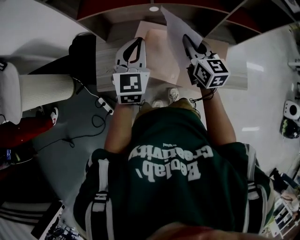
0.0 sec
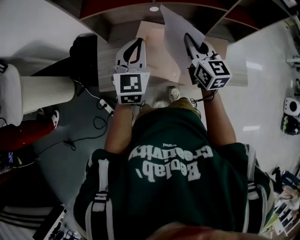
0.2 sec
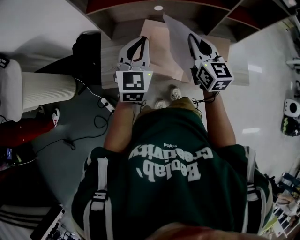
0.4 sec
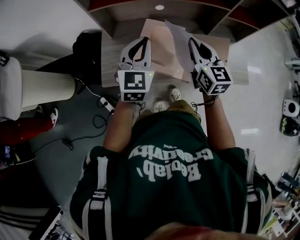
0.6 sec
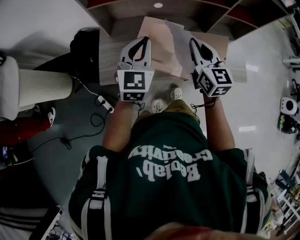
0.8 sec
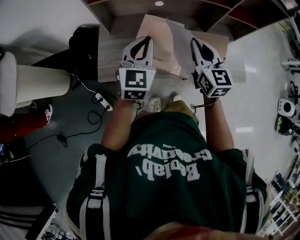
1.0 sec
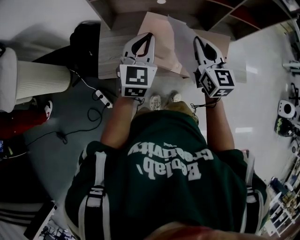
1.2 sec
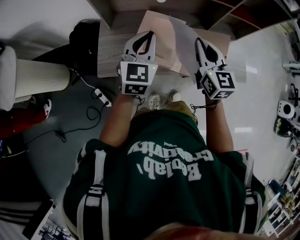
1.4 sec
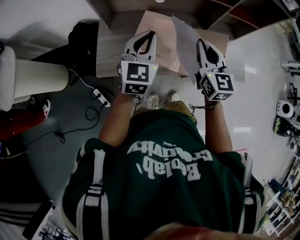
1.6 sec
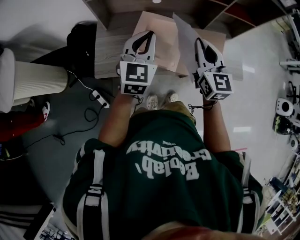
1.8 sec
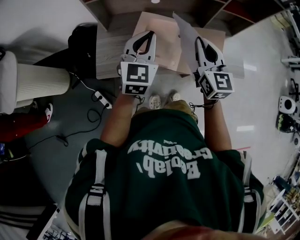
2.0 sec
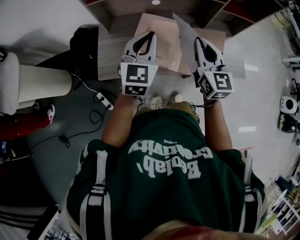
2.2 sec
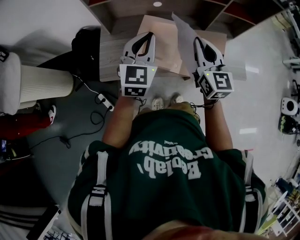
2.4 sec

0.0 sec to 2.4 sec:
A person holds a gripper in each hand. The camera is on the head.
0.0 sec to 1.2 sec: Both grippers move backward, roughly 5 cm.
1.2 sec to 2.4 sec: The grippers stay close to where they were, moving slightly.

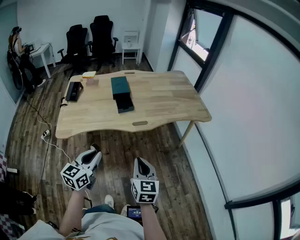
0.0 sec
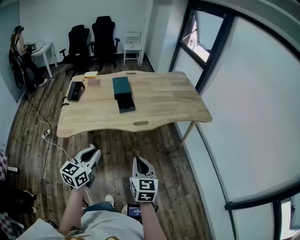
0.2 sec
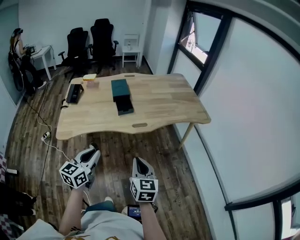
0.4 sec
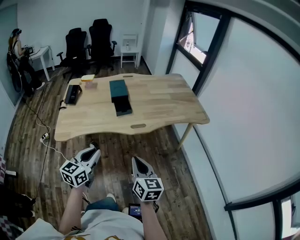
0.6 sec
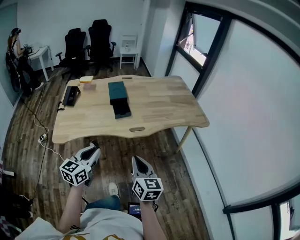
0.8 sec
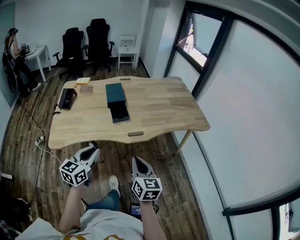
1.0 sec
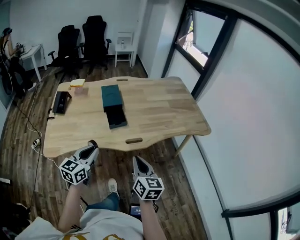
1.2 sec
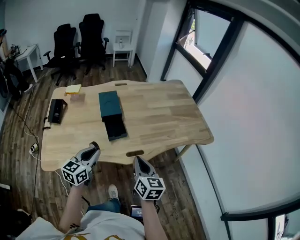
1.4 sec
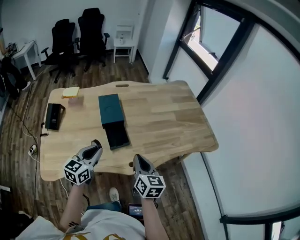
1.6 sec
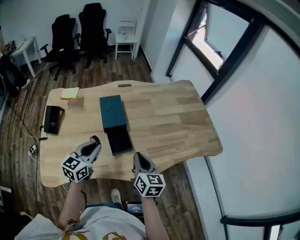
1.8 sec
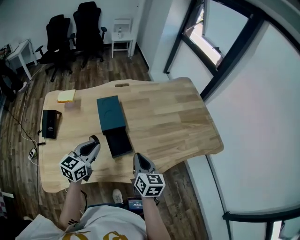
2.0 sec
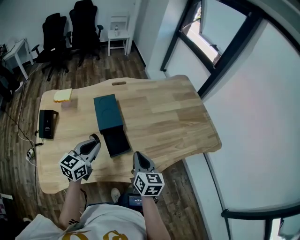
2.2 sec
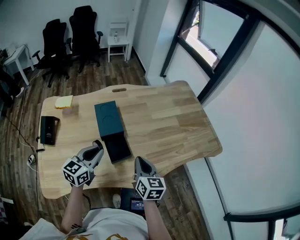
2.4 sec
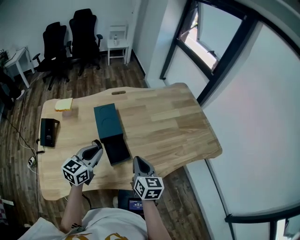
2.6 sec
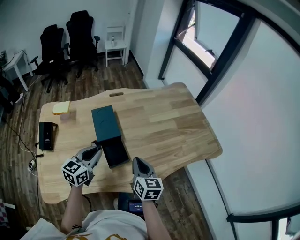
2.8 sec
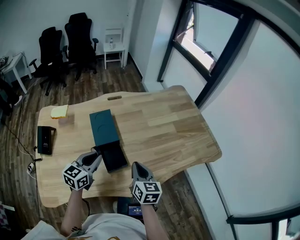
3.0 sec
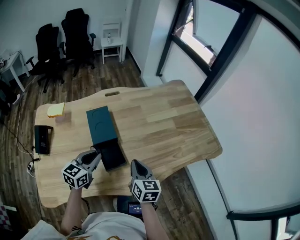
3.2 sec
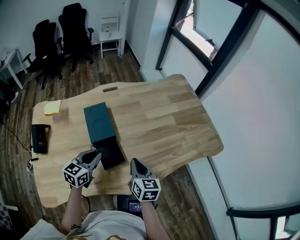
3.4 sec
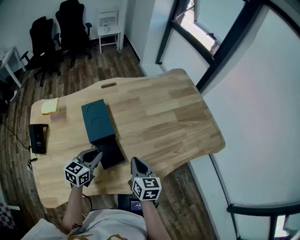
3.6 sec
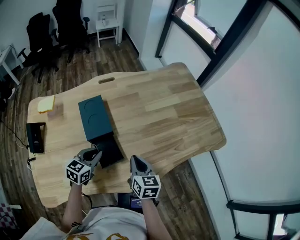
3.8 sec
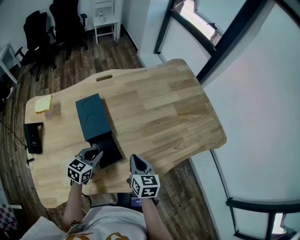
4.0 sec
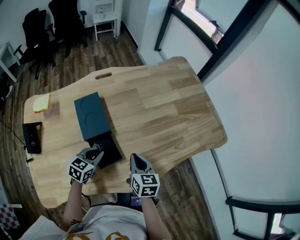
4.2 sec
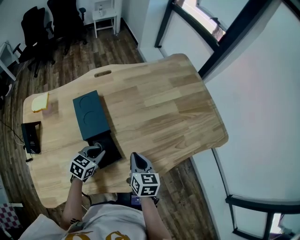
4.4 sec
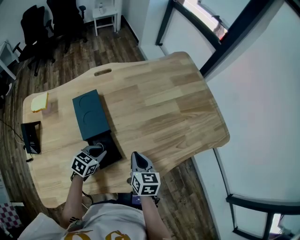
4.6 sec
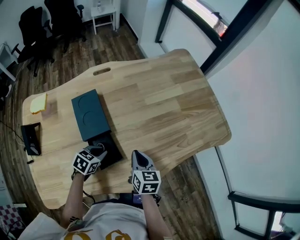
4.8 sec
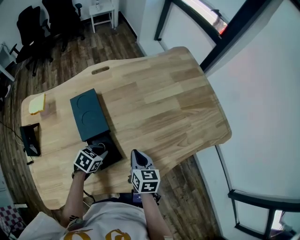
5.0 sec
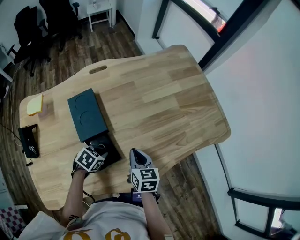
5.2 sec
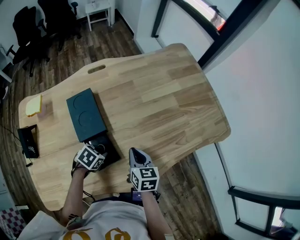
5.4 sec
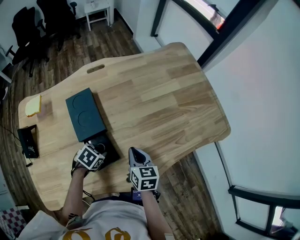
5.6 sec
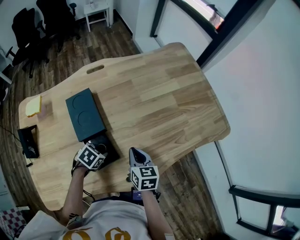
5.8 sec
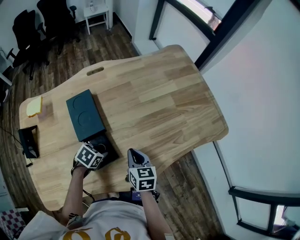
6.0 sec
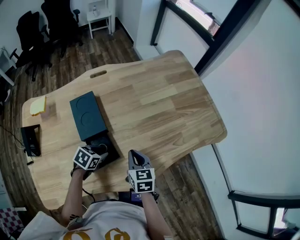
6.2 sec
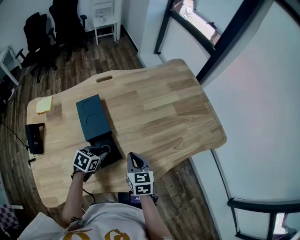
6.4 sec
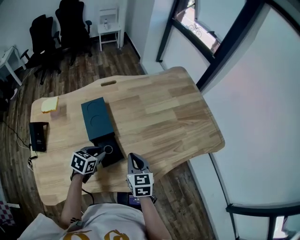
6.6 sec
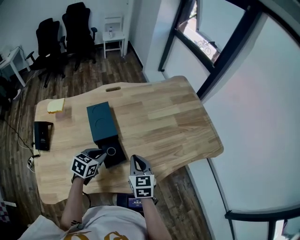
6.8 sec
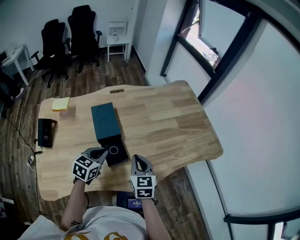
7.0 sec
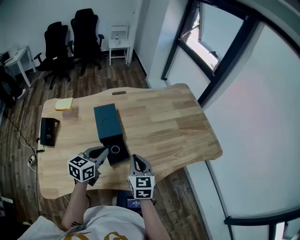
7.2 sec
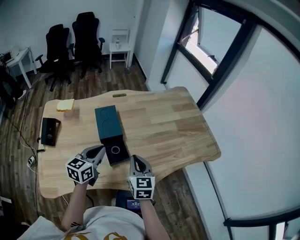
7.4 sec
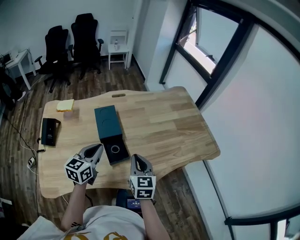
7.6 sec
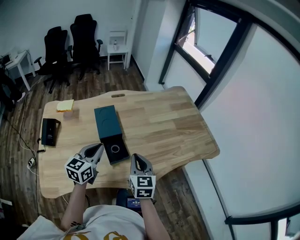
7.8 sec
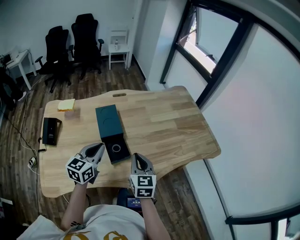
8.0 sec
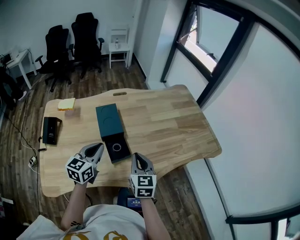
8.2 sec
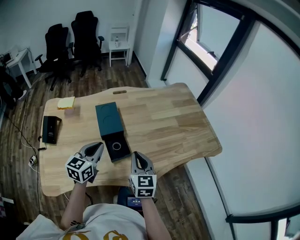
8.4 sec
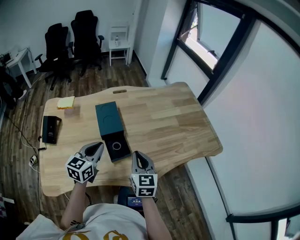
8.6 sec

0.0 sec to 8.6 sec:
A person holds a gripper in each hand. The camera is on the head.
0.0 sec to 1.4 sec: Both grippers move forward, about 25 cm.
1.4 sec to 2.8 sec: Both grippers move forward, about 20 cm.
2.8 sec to 4.4 sec: The left gripper goes some 20 cm downward, and swivels approximately 30 degrees, while the right gripper goes roughly 10 cm downward and forward.
4.4 sec to 5.8 sec: The left gripper travels downward by roughly 5 cm, and changes its angle by approximately 30 degrees.
5.8 sec to 7.2 sec: The right gripper moves upward and backward, roughly 15 cm, and turns by approximately 30 degrees. The left gripper travels upward by some 20 cm, and tilts its fingers approximately 50 degrees upward.
7.2 sec to 8.6 sec: The grippers move only a little.

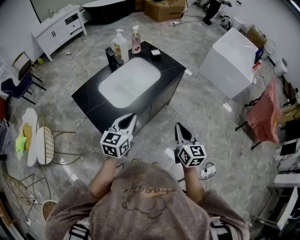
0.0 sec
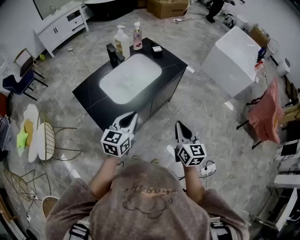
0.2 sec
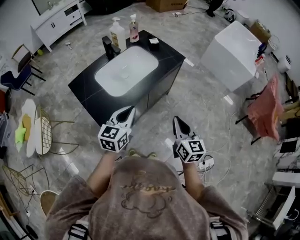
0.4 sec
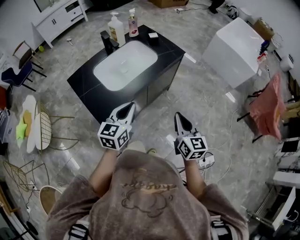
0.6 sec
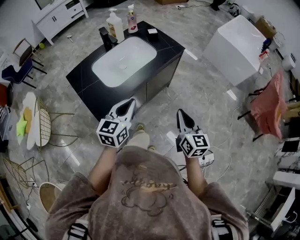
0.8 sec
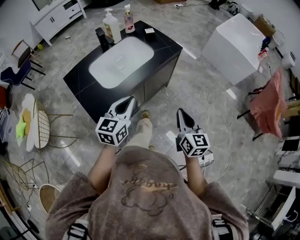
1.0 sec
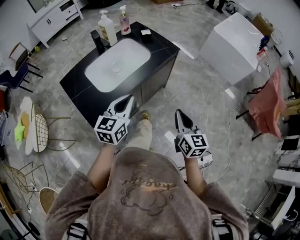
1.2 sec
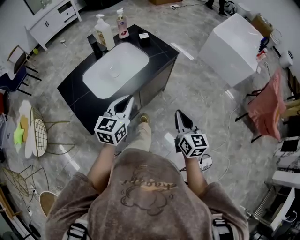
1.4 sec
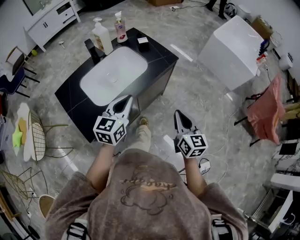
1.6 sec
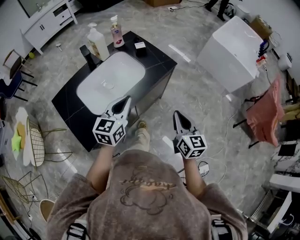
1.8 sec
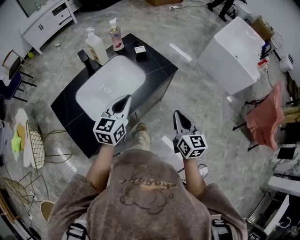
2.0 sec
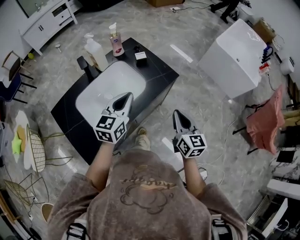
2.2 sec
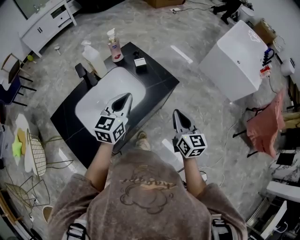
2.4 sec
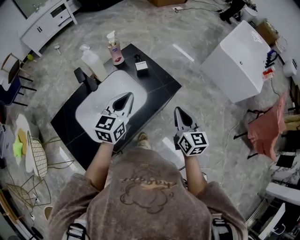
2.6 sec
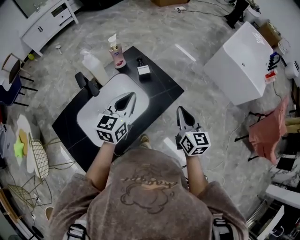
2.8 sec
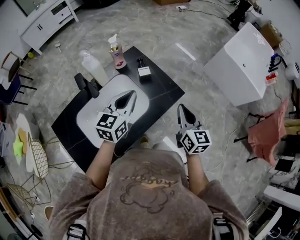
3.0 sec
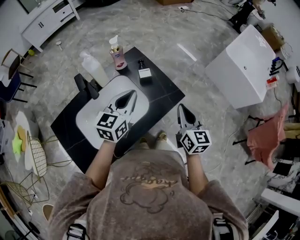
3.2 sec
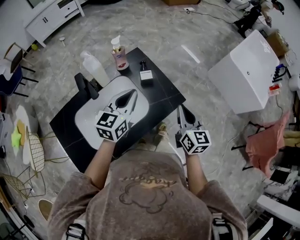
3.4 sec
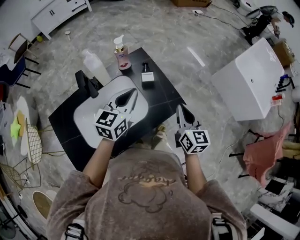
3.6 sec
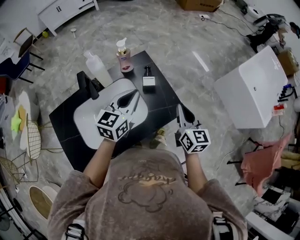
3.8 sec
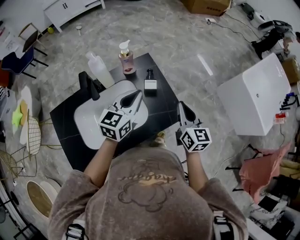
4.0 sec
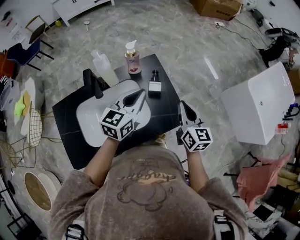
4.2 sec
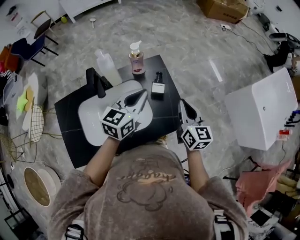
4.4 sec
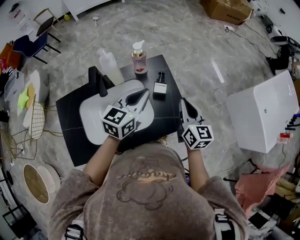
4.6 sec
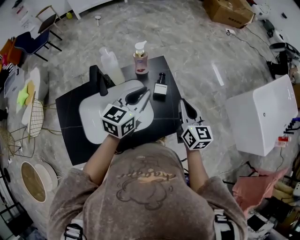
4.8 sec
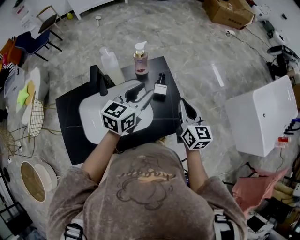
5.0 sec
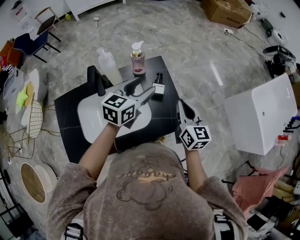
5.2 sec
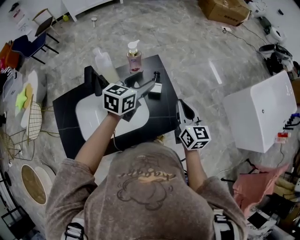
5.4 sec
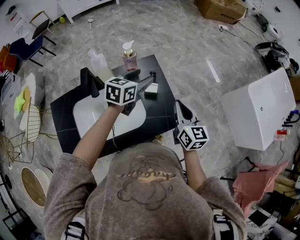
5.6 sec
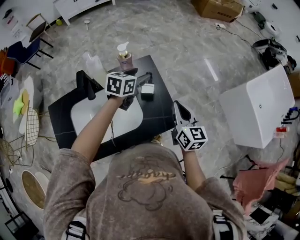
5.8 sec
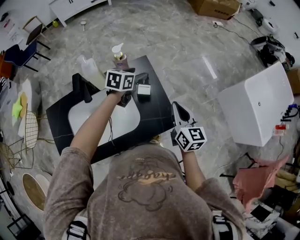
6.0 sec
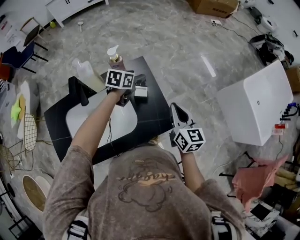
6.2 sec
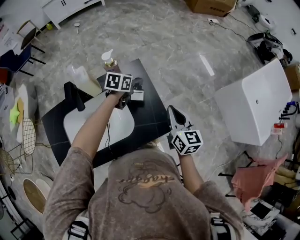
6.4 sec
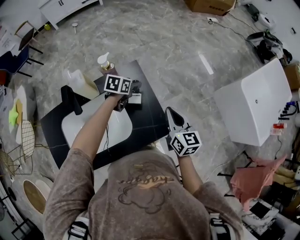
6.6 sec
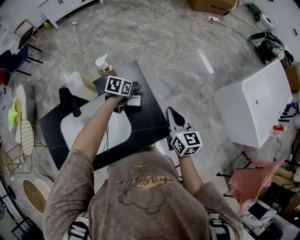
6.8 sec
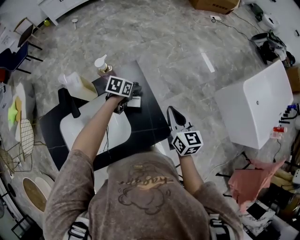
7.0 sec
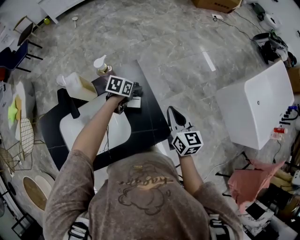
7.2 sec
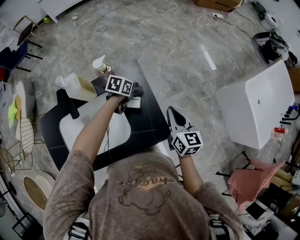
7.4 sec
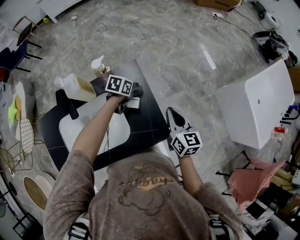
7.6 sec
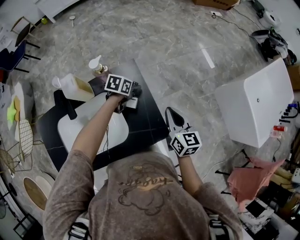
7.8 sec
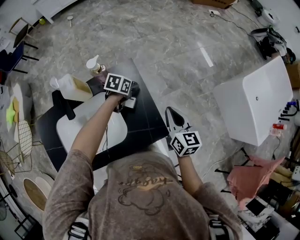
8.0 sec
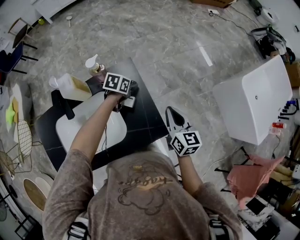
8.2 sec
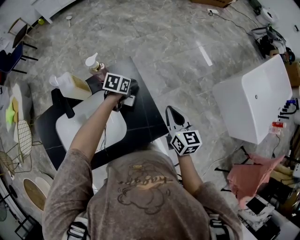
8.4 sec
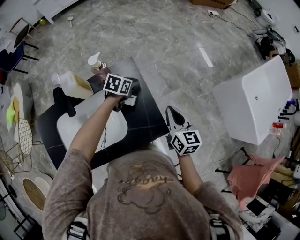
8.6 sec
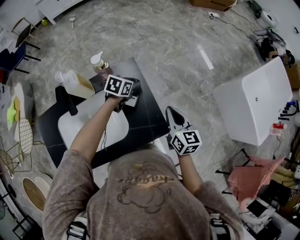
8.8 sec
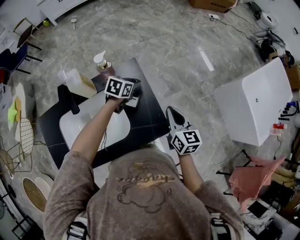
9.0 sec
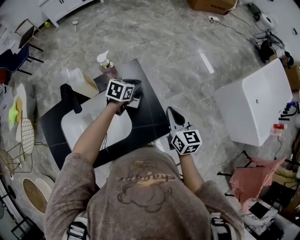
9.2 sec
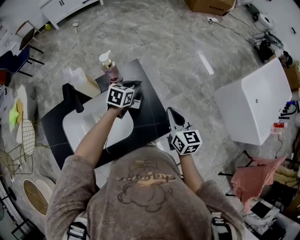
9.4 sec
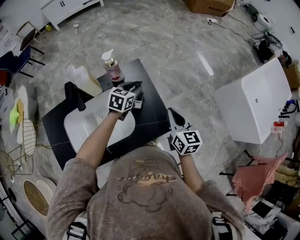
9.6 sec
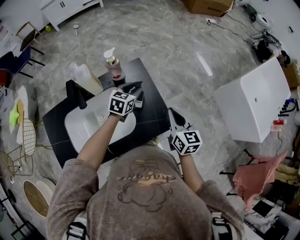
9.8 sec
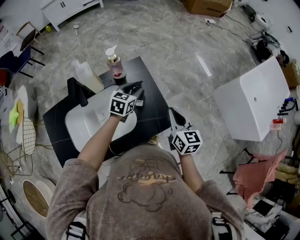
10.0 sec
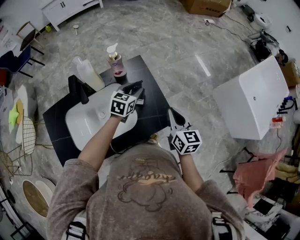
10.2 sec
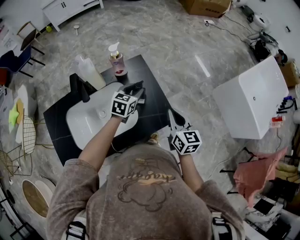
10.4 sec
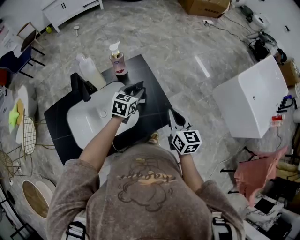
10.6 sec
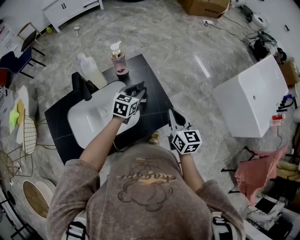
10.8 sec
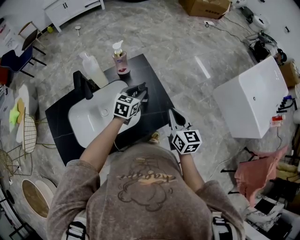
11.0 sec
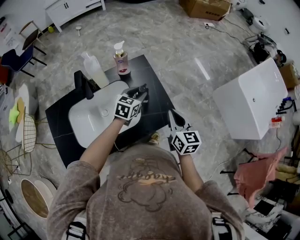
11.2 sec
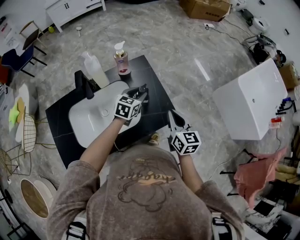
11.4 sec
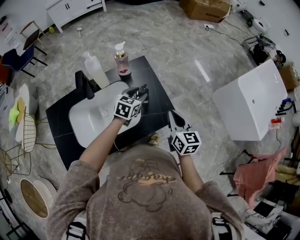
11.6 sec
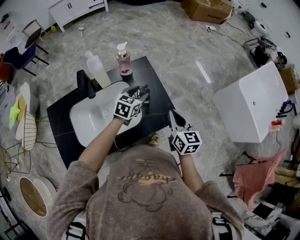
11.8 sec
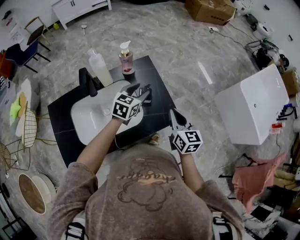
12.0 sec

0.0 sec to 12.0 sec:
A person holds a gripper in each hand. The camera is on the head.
0.0 sec to 1.6 sec: The grippers both shift forward and to the right by roughly 15 cm.
1.6 sec to 3.0 sec: Both grippers move forward, some 30 cm.
3.0 sec to 4.4 sec: The right gripper heads forward, covering some 20 cm, and changes its angle by approximately 20 degrees, while the left gripper goes some 10 cm forward.
4.4 sec to 6.0 sec: The left gripper heads forward and downward, covering some 20 cm, rotates about 20 degrees, and opens.
6.0 sec to 7.6 sec: The right gripper heads forward and downward, covering about 10 cm, while the left gripper is displaced downward by about 15 cm, and turns by roughly 20 degrees.
7.6 sec to 9.0 sec: The left gripper changes place by some 5 cm.
9.0 sec to 10.4 sec: The right gripper travels backward by roughly 10 cm; the left gripper travels backward and upward by approximately 10 cm.
10.4 sec to 12.0 sec: The left gripper shifts by approximately 5 cm.

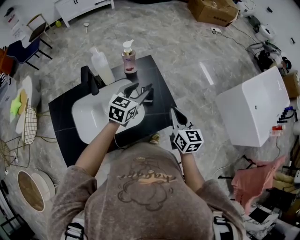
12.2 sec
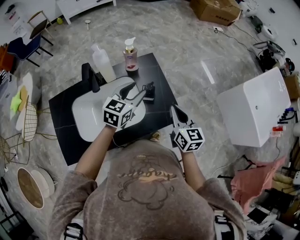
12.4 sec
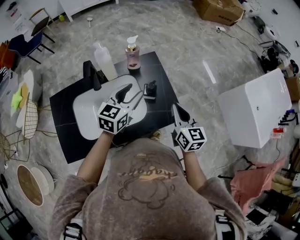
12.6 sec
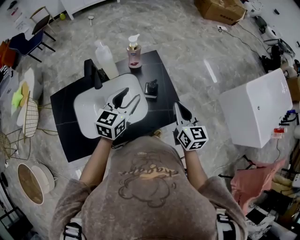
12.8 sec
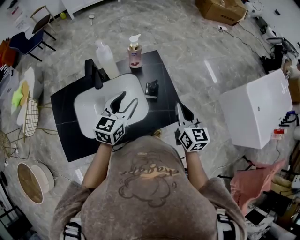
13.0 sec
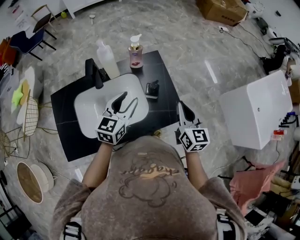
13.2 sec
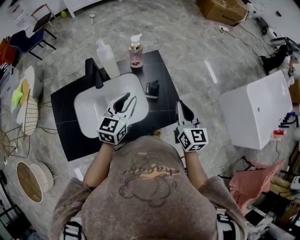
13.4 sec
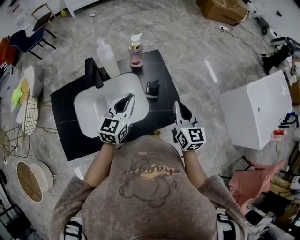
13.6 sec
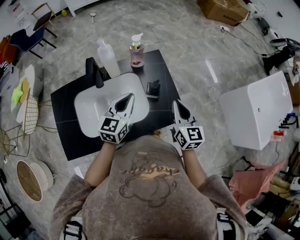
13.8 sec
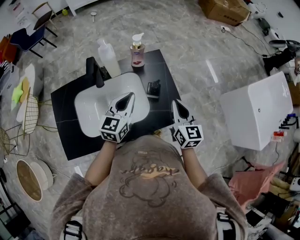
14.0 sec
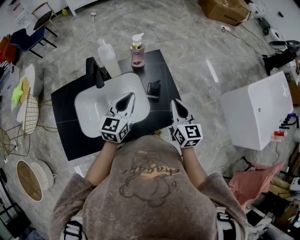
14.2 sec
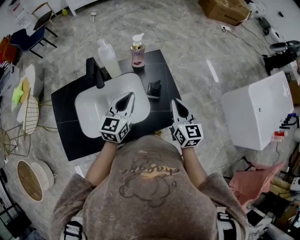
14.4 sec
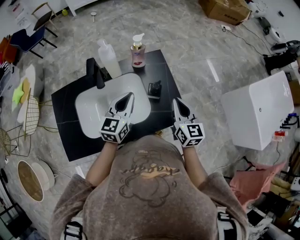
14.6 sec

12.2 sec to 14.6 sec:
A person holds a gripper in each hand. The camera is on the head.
12.2 sec to 13.4 sec: The left gripper travels backward and to the left by roughly 10 cm.
13.4 sec to 14.6 sec: The left gripper closes up.
